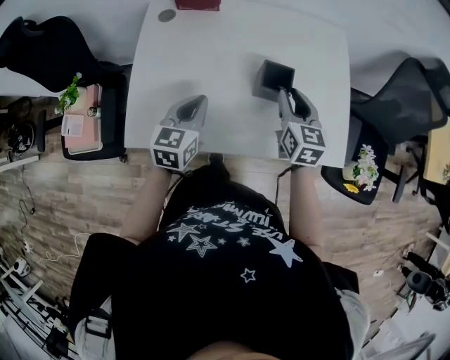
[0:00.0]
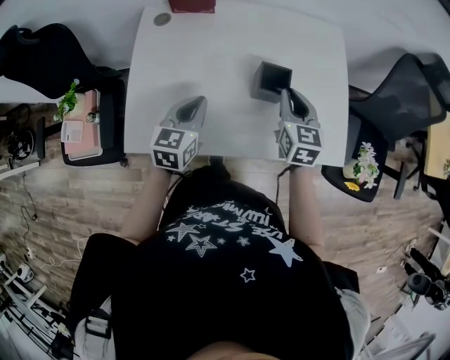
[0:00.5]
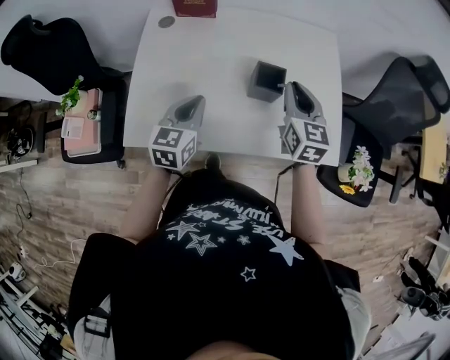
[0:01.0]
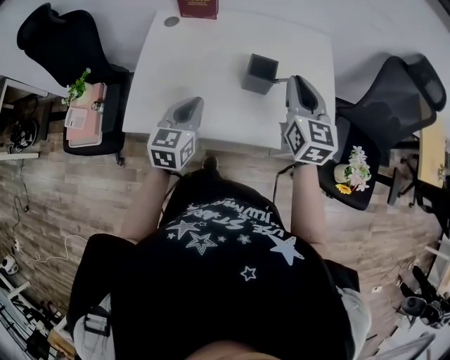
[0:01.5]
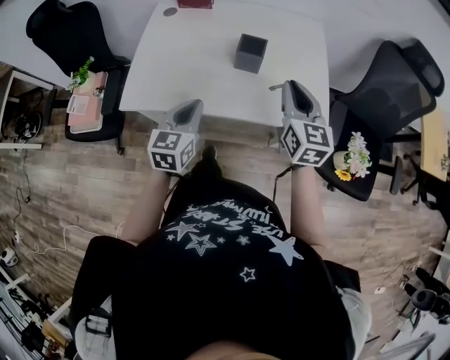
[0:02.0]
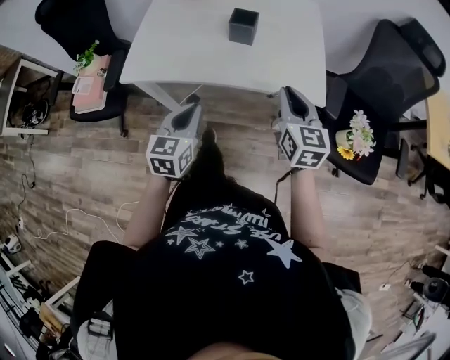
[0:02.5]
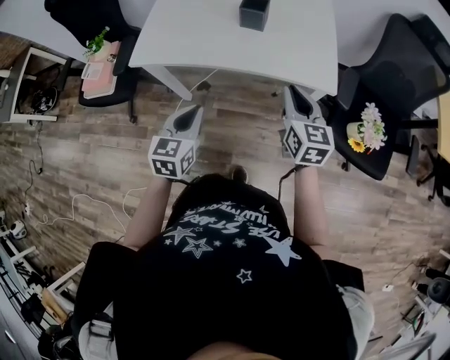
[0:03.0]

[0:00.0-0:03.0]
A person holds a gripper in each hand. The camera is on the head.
0:00.0 to 0:01.5: The right gripper shifts some 10 cm upward; the left gripper shifts some 5 cm backward.
0:01.5 to 0:03.0: The grippers both shift backward by approximately 25 cm.

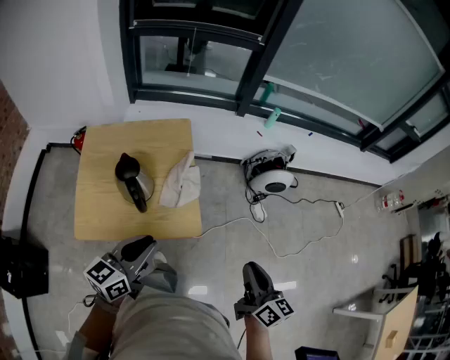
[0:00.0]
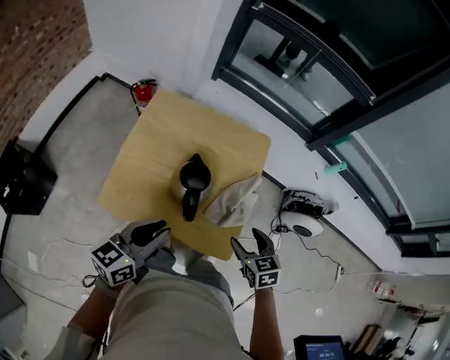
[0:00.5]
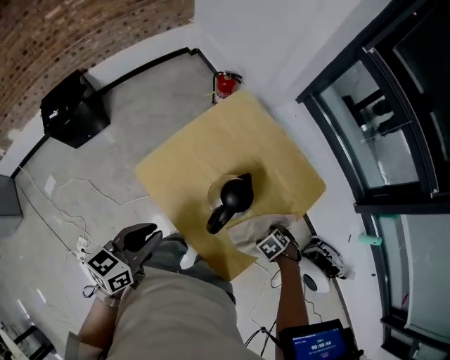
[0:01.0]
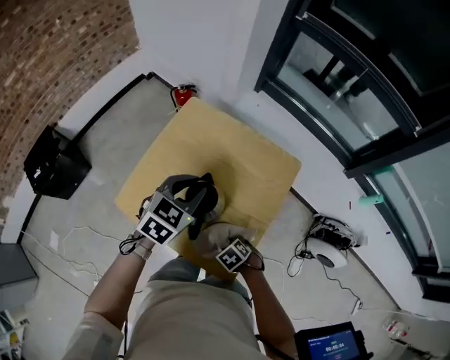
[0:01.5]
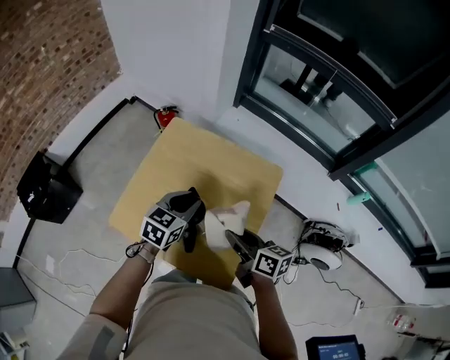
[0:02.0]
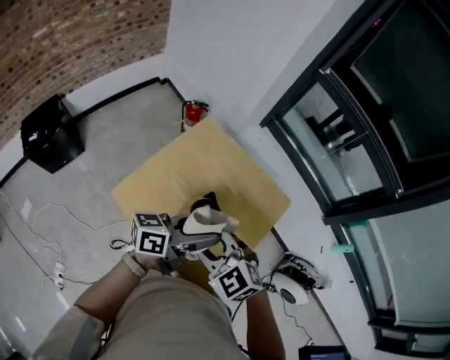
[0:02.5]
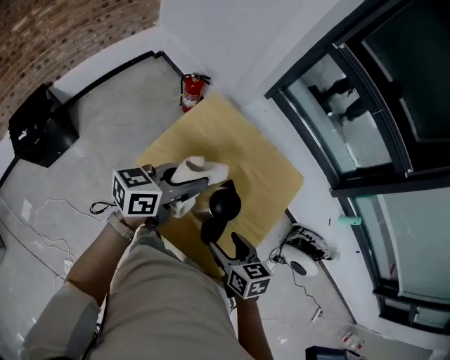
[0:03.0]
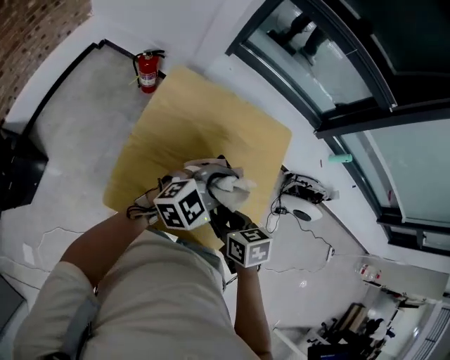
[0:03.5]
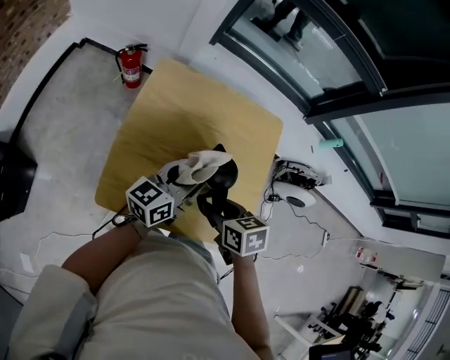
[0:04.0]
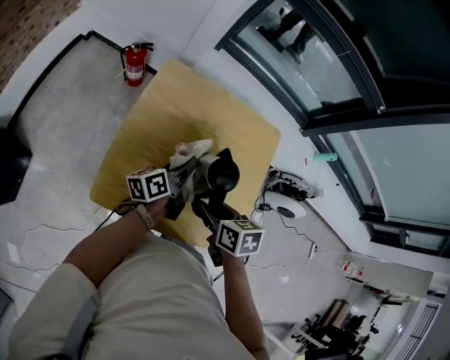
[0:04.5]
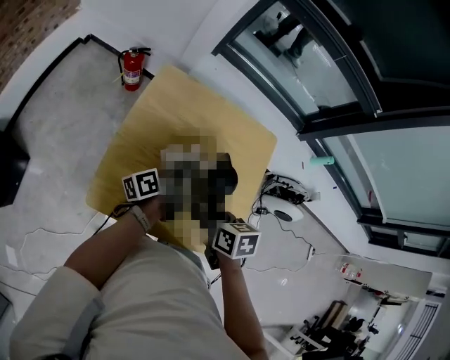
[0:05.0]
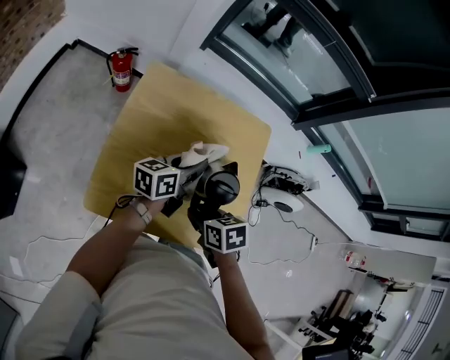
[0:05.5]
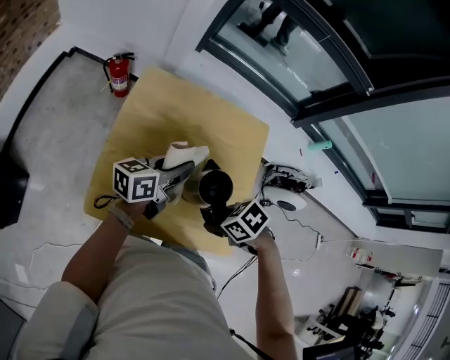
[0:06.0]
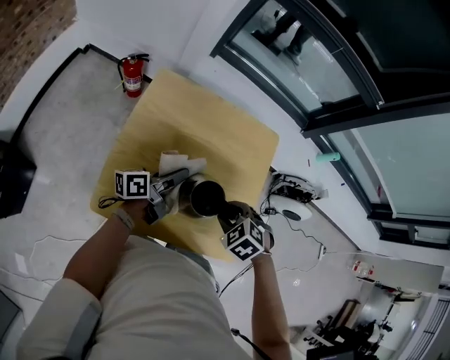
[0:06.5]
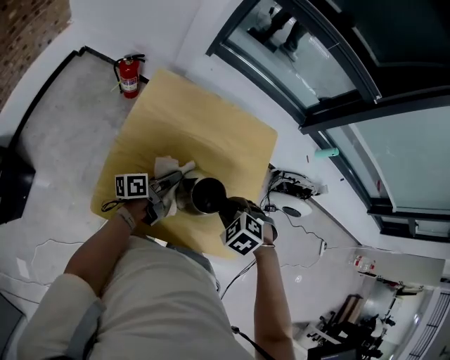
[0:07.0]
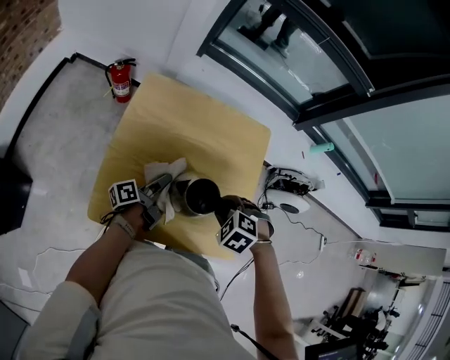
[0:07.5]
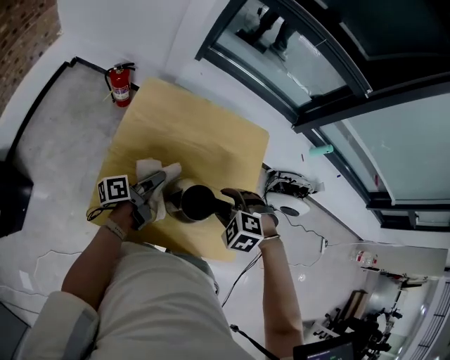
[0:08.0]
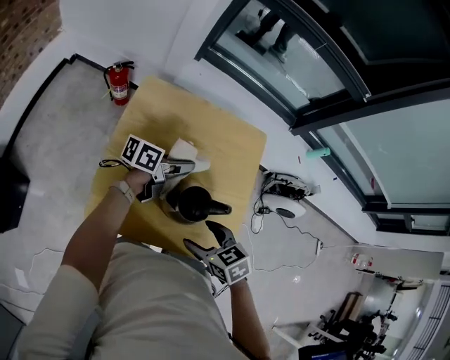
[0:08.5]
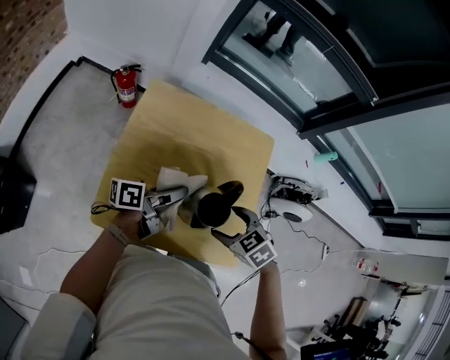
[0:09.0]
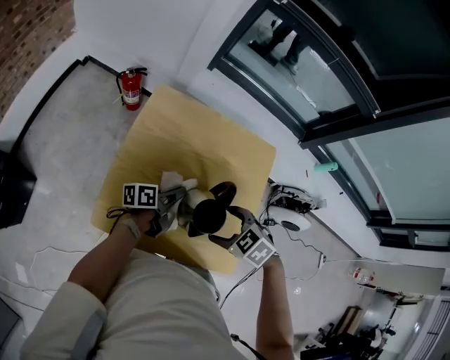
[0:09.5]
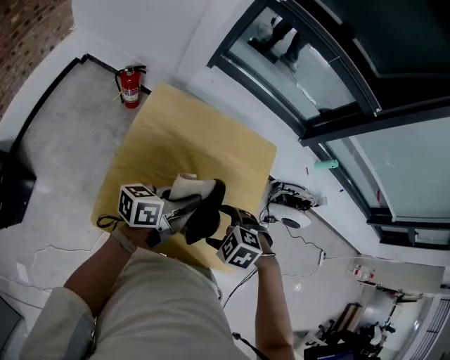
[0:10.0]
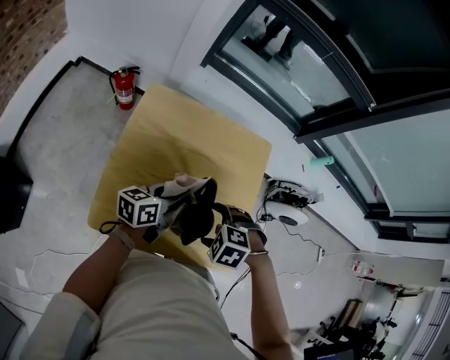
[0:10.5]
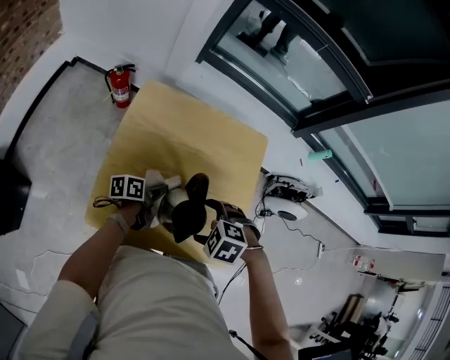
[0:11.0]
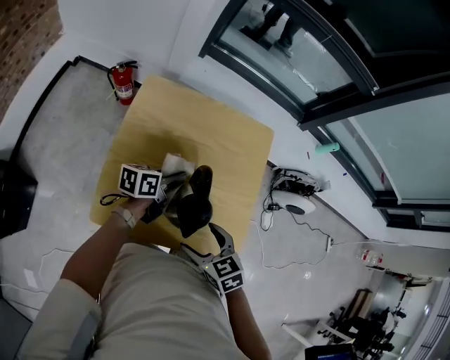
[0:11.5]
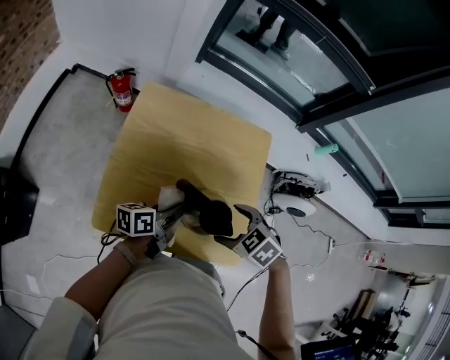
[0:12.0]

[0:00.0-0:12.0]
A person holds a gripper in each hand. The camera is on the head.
0:00.0 to 0:02.0: The left gripper changes place by approximately 35 cm, and turns by approximately 30 degrees. Meanwhile the right gripper travels downward and back again, about 30 cm each way, changes its angle by about 50 degrees, and opens, then closes again.
0:02.0 to 0:04.0: The left gripper moves roughly 10 cm upward and comes back, swivels approximately 40 degrees, and opens and closes again. The right gripper changes place by roughly 20 cm, and angles its fingers downward, by about 40 degrees.
0:04.0 to 0:06.0: The right gripper ends up about 5 cm from where it was, and changes its angle by roughly 40 degrees. The left gripper moves roughly 10 cm downward and comes back.
0:06.0 to 0:08.0: The left gripper is displaced downward by about 10 cm, and rotates about 40 degrees; the right gripper ends up approximately 10 cm from where it was, and twists approximately 40 degrees counterclockwise, seen from behind.
0:08.0 to 0:10.0: The right gripper opens. Meanwhile the left gripper swings up and down, some 10 cm each way, with 2 reversals, and turns by approximately 30 degrees.
0:10.0 to 0:12.0: The right gripper changes place by some 5 cm, and changes its angle by roughly 20 degrees, while the left gripper shifts some 5 cm downward.

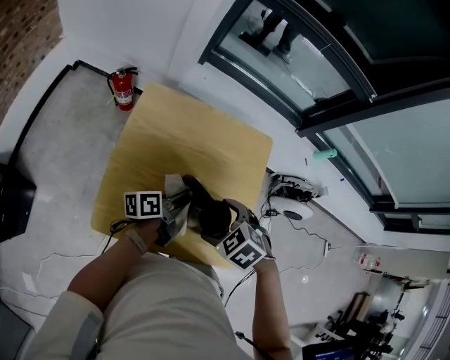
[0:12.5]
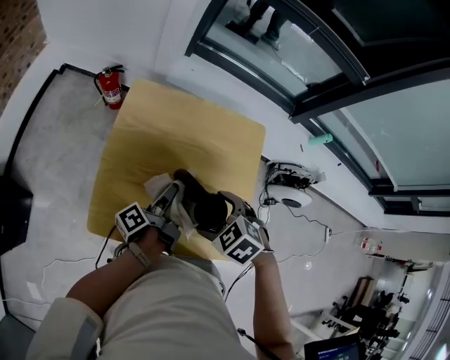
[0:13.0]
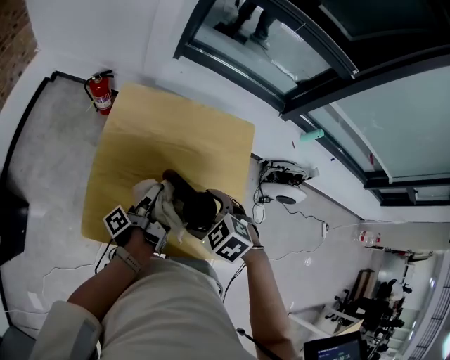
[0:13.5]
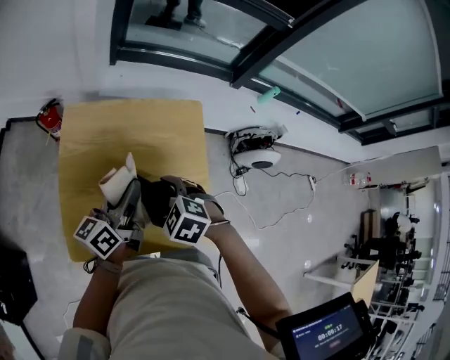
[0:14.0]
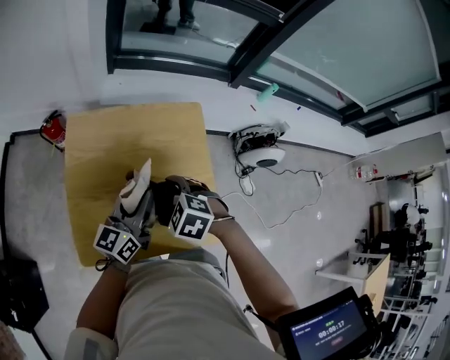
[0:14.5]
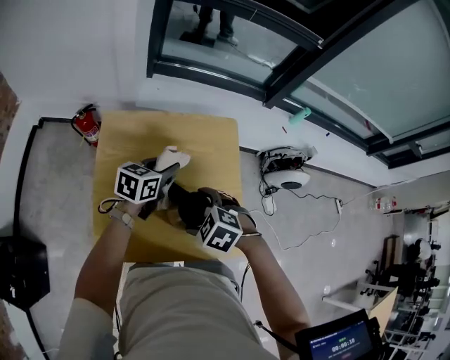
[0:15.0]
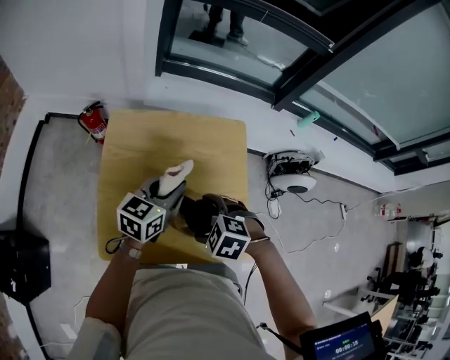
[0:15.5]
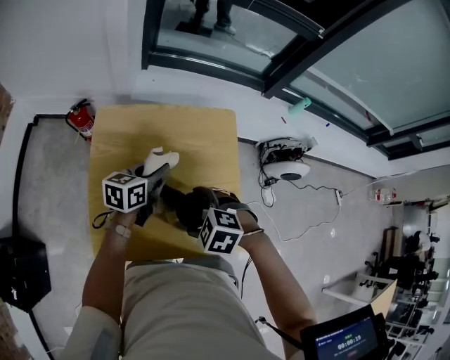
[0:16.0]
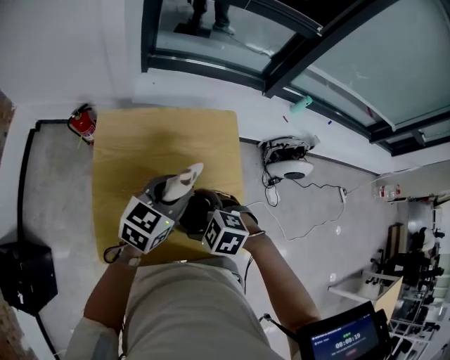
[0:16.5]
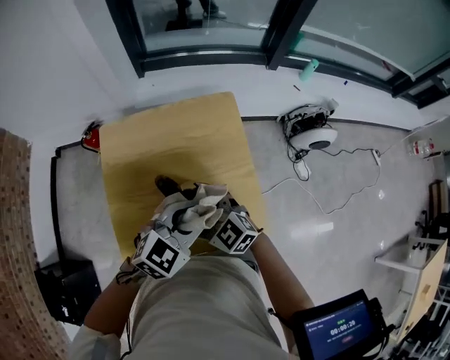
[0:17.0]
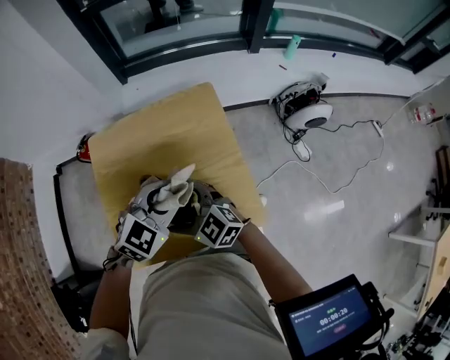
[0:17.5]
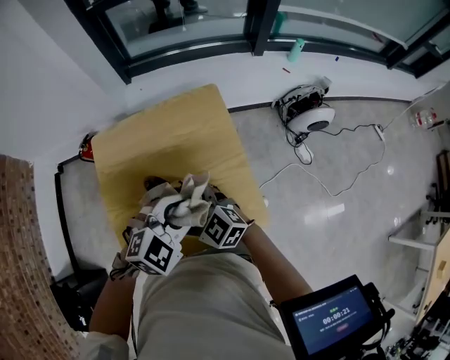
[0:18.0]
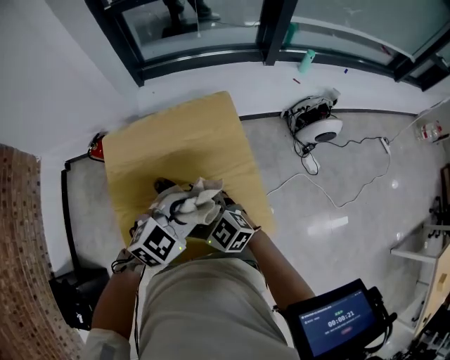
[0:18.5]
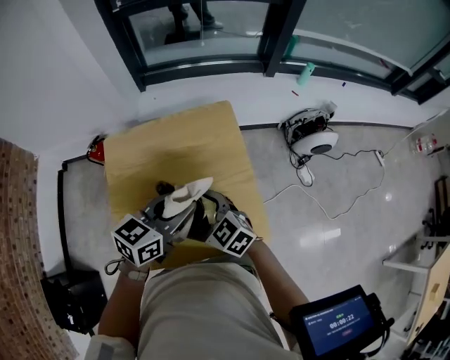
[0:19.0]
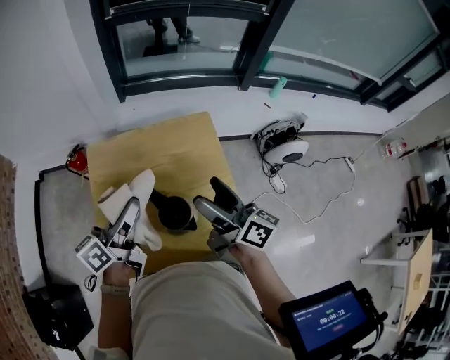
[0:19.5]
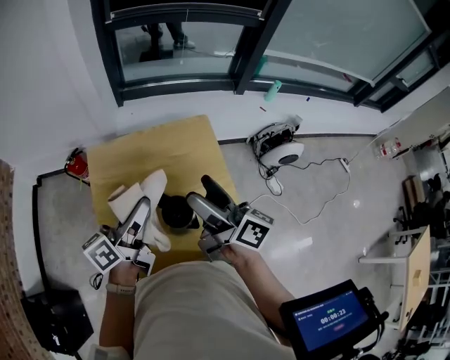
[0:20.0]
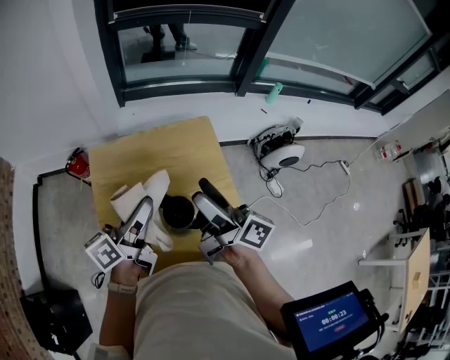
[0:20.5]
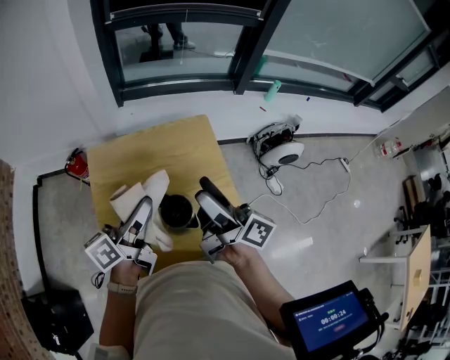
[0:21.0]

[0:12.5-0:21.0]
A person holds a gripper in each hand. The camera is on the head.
0:12.5 to 0:14.5: The left gripper moves upward, approximately 10 cm, and rolls clockwise, seen from behind, by about 50 degrees.
0:14.5 to 0:16.5: The left gripper moves forward and backward over roughly 10 cm, changing direction 3 times, and rotates approximately 30 degrees.
0:16.5 to 0:19.0: The right gripper angles its fingers upward, by roughly 30 degrees.
0:19.0 to 0:21.0: The left gripper shifts about 15 cm to the left and upward, and turns by approximately 50 degrees. Meanwhile the right gripper travels upward by approximately 20 cm, and angles its fingers upward, by approximately 50 degrees.

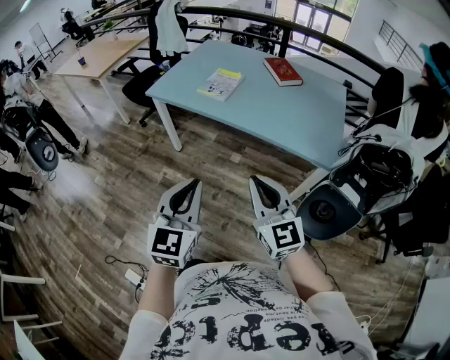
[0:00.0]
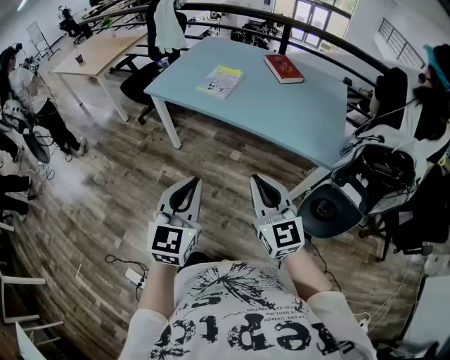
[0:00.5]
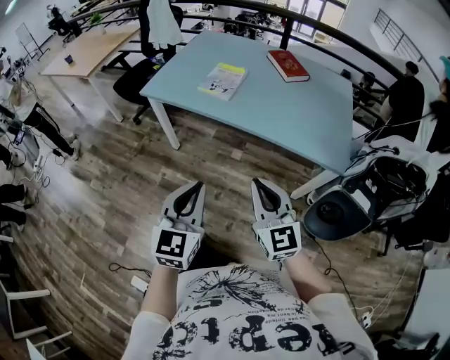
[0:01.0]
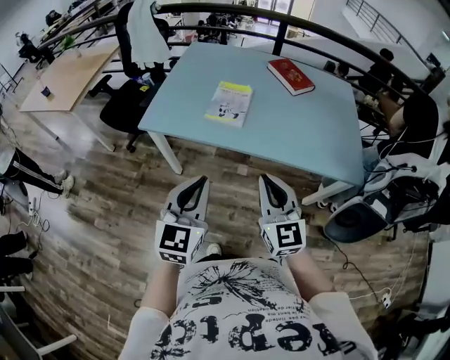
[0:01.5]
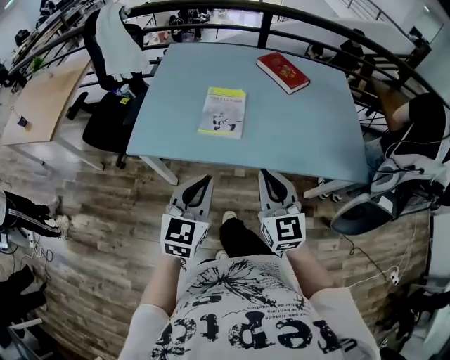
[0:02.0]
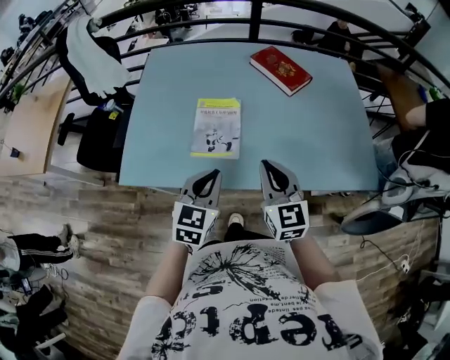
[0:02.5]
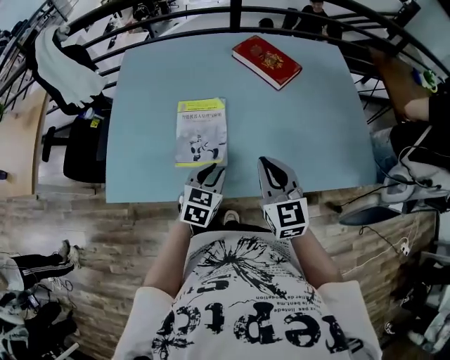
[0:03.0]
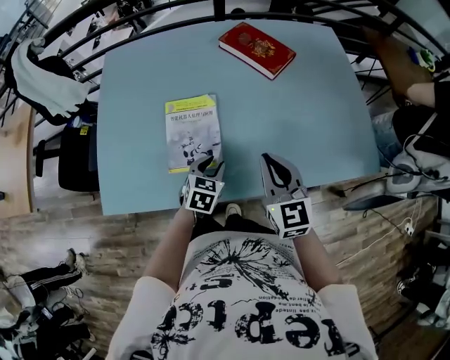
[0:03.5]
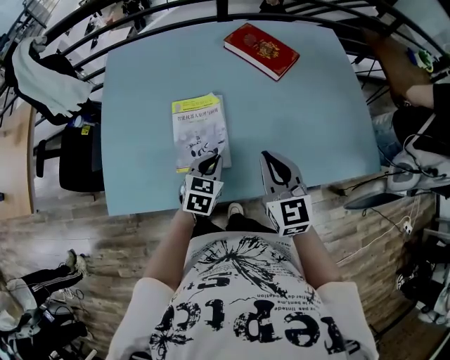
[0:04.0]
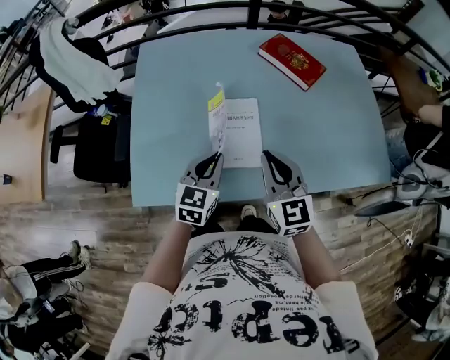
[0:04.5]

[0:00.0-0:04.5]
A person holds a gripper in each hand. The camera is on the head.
0:00.0 to 0:02.0: The pair of grippers is taken roughly 40 cm. The right gripper swivels approximately 30 degrees, while the left gripper swivels about 30 degrees.
0:02.0 to 0:04.5: The left gripper heads forward, covering approximately 30 cm, and opens, then closes again; the right gripper goes about 25 cm forward and to the left.
